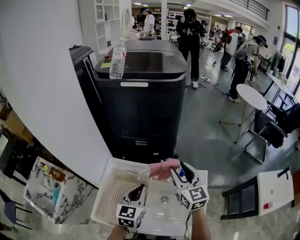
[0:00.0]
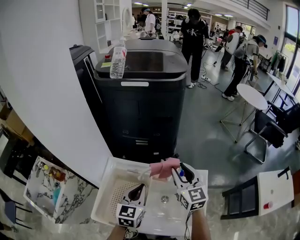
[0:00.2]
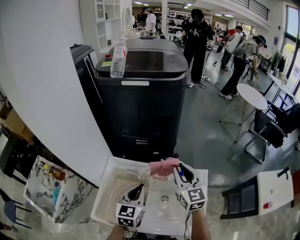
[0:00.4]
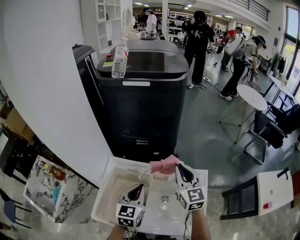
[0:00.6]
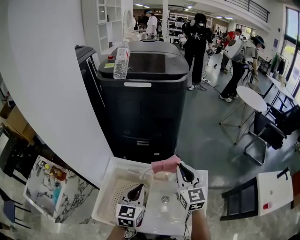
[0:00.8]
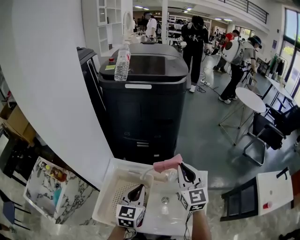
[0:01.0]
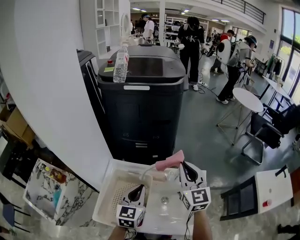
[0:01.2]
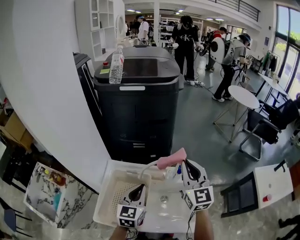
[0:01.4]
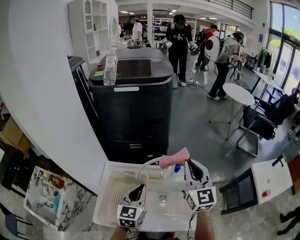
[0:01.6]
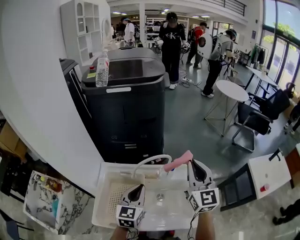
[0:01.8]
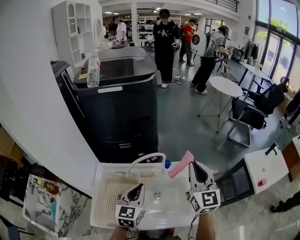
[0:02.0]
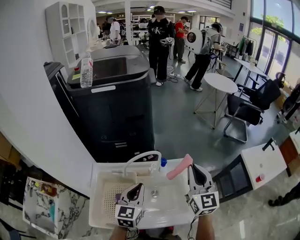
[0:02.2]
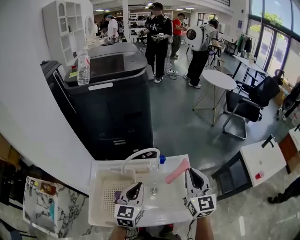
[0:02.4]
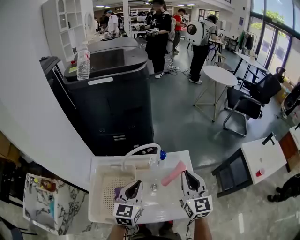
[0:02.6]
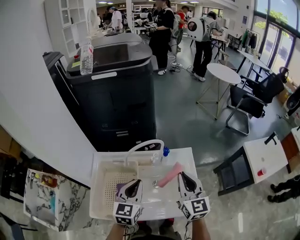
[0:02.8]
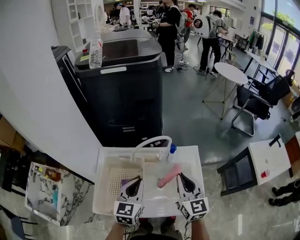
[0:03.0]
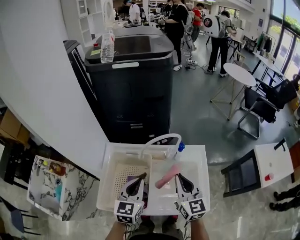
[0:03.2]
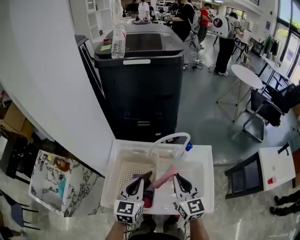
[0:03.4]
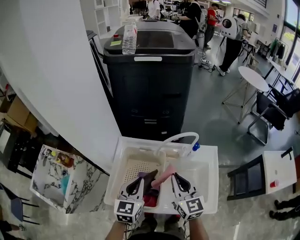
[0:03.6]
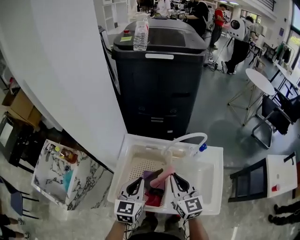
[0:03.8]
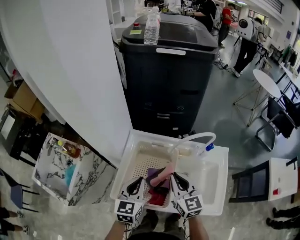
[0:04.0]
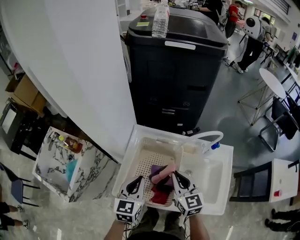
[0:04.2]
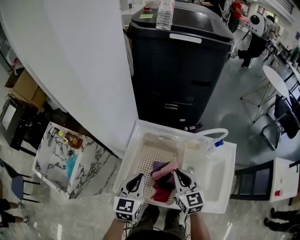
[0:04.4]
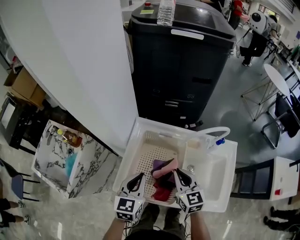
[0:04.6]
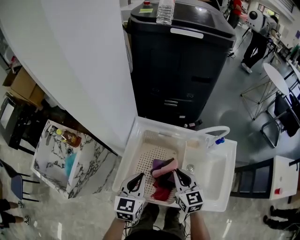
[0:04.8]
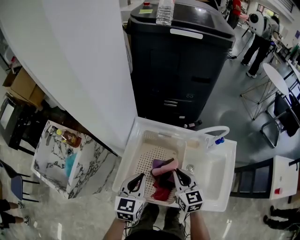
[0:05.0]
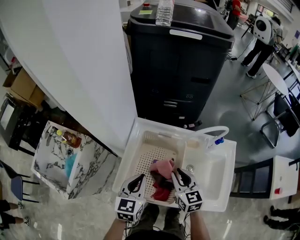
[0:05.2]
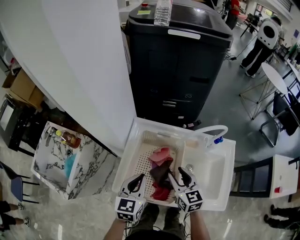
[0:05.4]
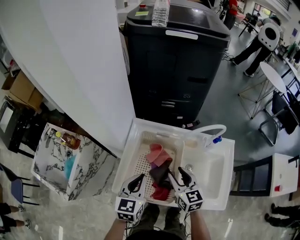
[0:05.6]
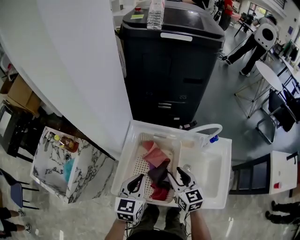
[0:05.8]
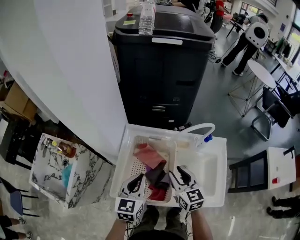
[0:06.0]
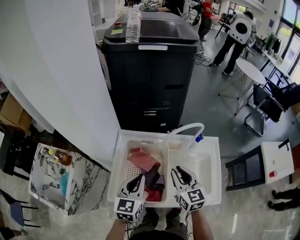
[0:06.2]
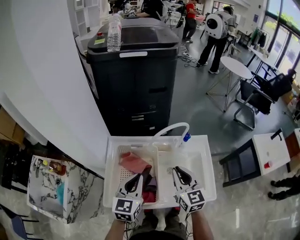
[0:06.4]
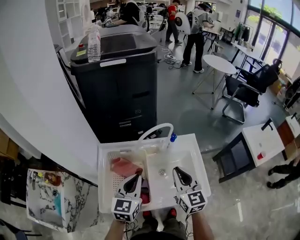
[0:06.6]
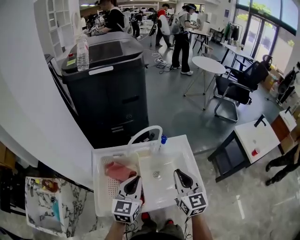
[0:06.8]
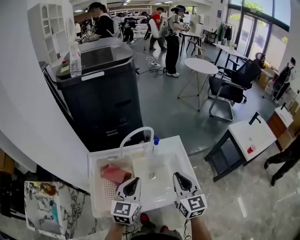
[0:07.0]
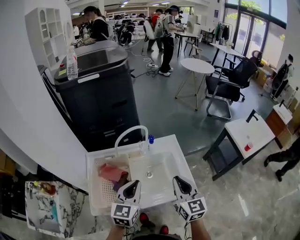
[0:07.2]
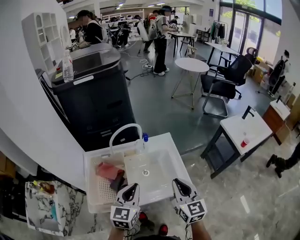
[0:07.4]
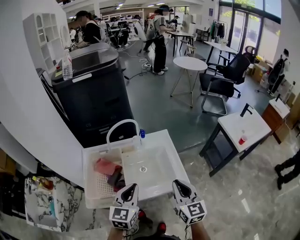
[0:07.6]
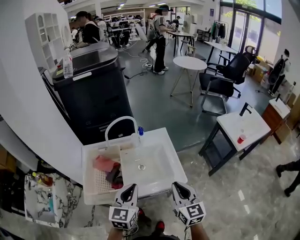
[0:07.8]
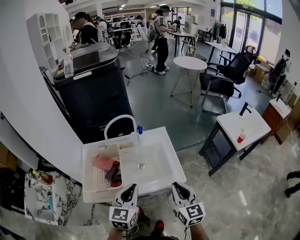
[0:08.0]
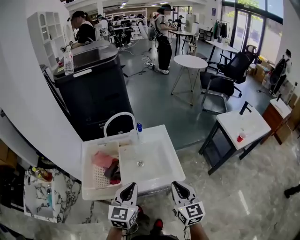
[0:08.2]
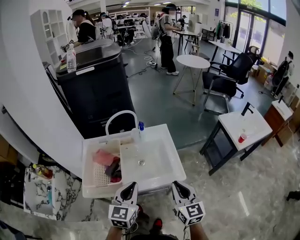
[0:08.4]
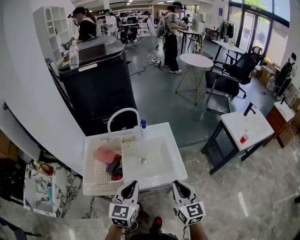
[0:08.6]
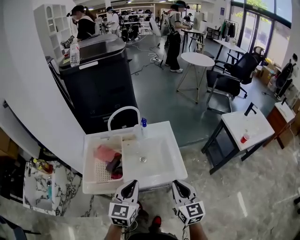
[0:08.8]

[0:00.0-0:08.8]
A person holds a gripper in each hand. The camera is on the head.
0:00.0 to 0:01.4: The right gripper moves upward, roughly 5 cm, and closes its fingers.
0:01.4 to 0:03.0: The left gripper changes place by roughly 5 cm. The right gripper shifts about 15 cm backward and downward.
0:03.0 to 0:04.4: The right gripper travels to the left and downward by roughly 25 cm, and turns by roughly 20 degrees; the left gripper is displaced to the left by about 20 cm.
0:04.4 to 0:05.8: The right gripper opens its fingers.
0:05.8 to 0:07.4: The left gripper moves about 25 cm, and changes its angle by approximately 30 degrees, while the right gripper ends up roughly 30 cm from where it was, swivels about 30 degrees, and closes up.
0:07.4 to 0:08.8: The two grippers go approximately 10 cm backward.

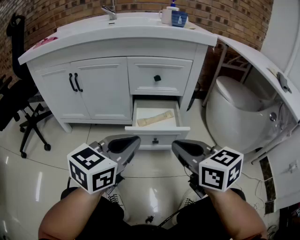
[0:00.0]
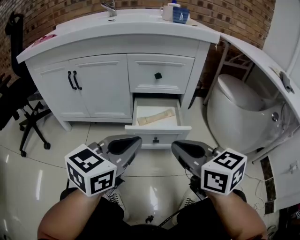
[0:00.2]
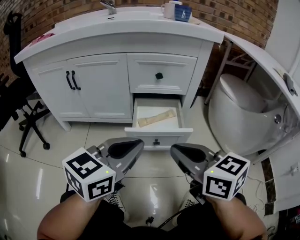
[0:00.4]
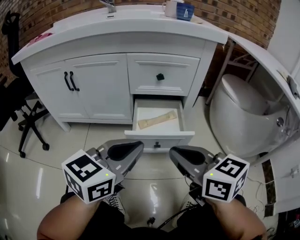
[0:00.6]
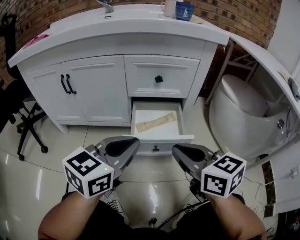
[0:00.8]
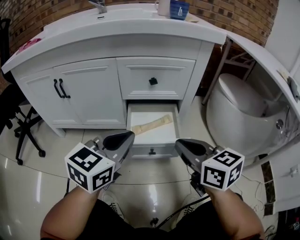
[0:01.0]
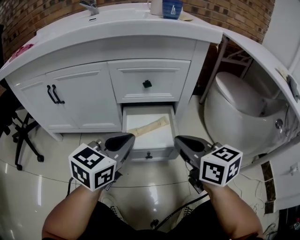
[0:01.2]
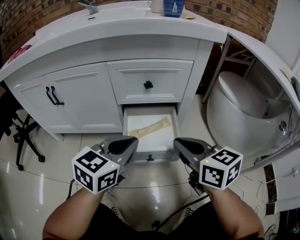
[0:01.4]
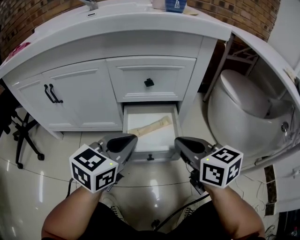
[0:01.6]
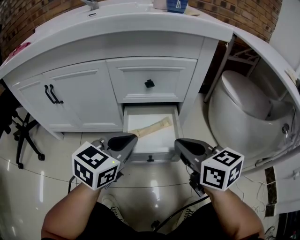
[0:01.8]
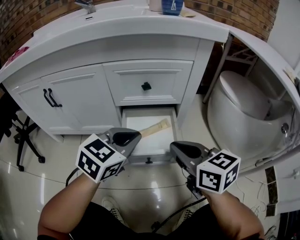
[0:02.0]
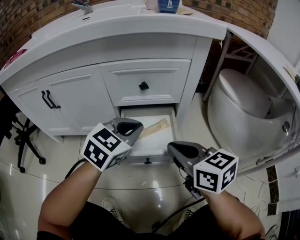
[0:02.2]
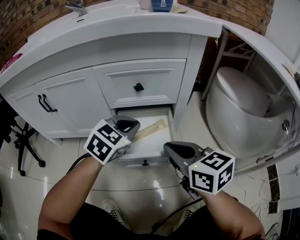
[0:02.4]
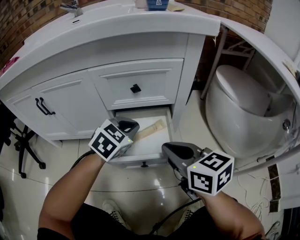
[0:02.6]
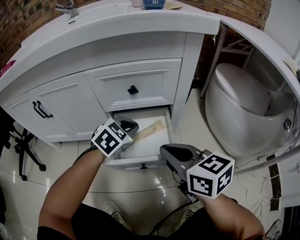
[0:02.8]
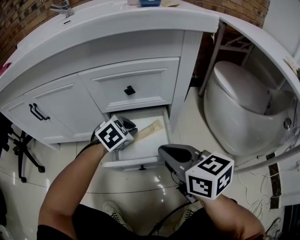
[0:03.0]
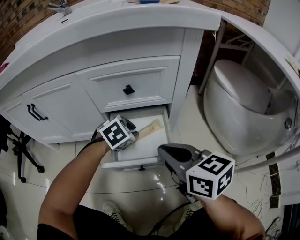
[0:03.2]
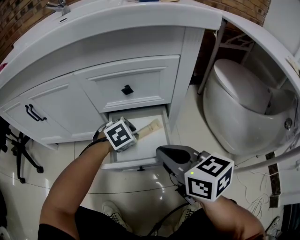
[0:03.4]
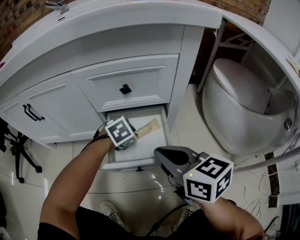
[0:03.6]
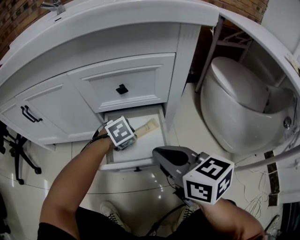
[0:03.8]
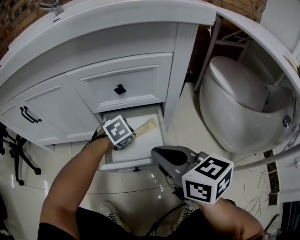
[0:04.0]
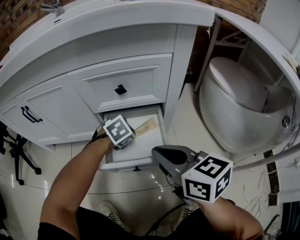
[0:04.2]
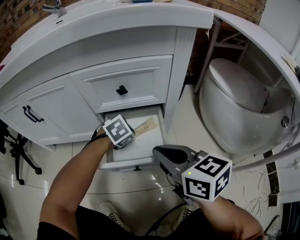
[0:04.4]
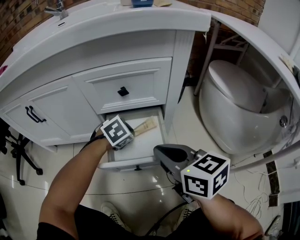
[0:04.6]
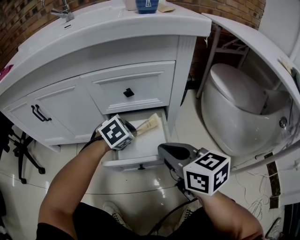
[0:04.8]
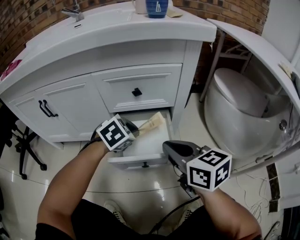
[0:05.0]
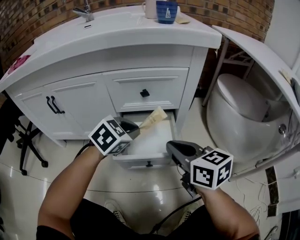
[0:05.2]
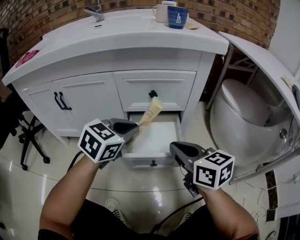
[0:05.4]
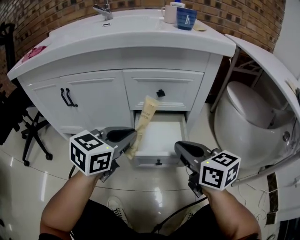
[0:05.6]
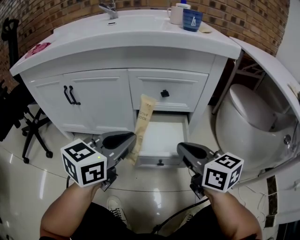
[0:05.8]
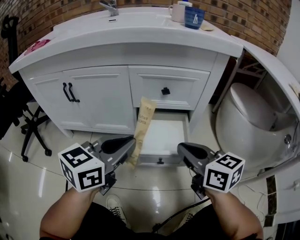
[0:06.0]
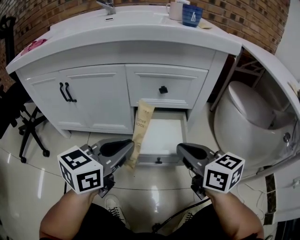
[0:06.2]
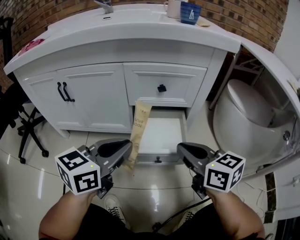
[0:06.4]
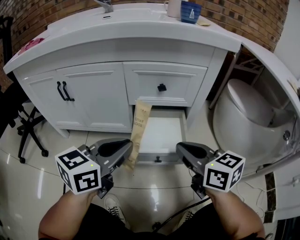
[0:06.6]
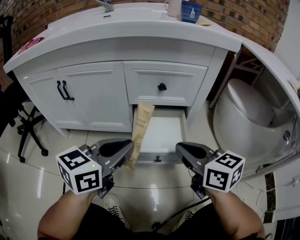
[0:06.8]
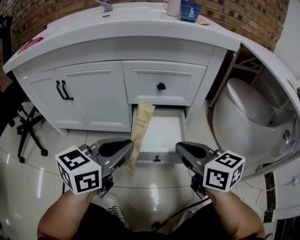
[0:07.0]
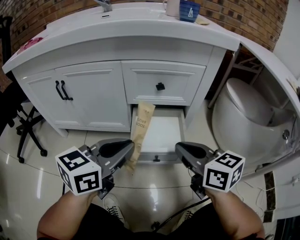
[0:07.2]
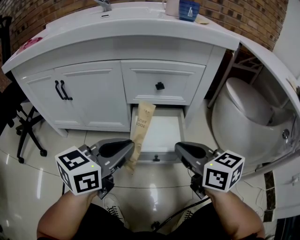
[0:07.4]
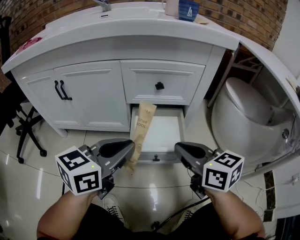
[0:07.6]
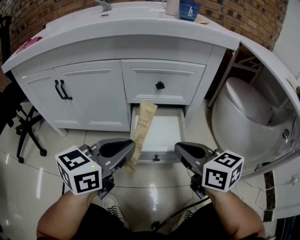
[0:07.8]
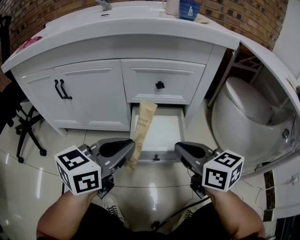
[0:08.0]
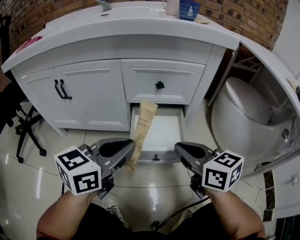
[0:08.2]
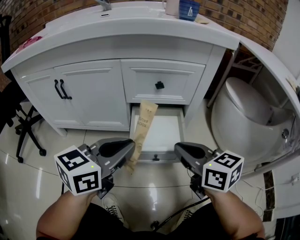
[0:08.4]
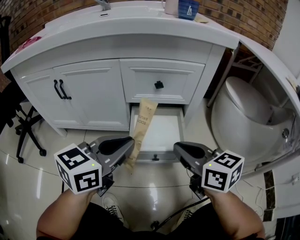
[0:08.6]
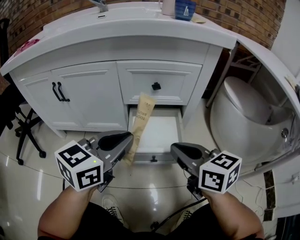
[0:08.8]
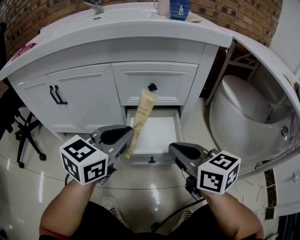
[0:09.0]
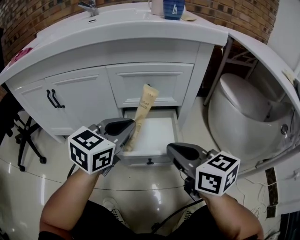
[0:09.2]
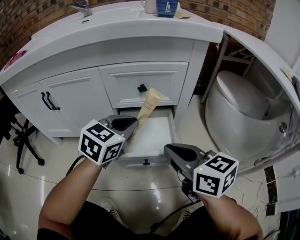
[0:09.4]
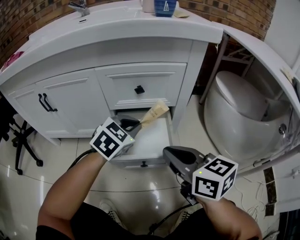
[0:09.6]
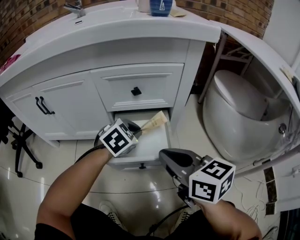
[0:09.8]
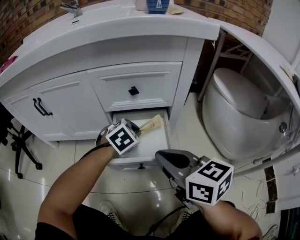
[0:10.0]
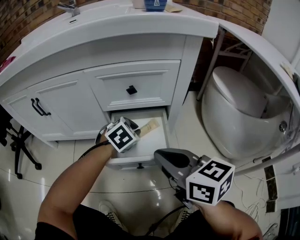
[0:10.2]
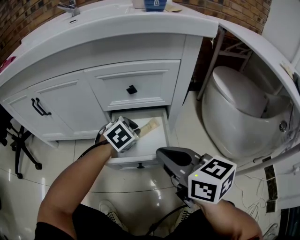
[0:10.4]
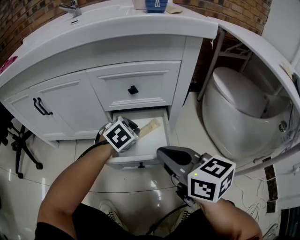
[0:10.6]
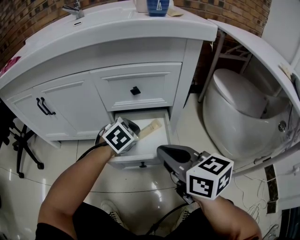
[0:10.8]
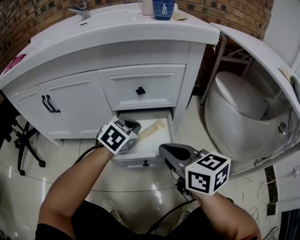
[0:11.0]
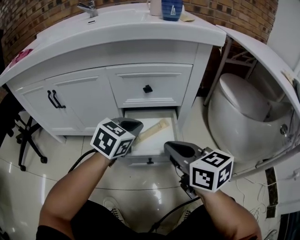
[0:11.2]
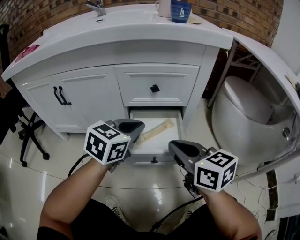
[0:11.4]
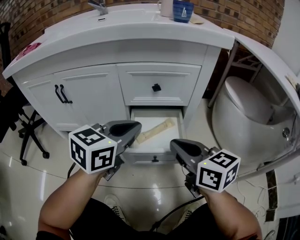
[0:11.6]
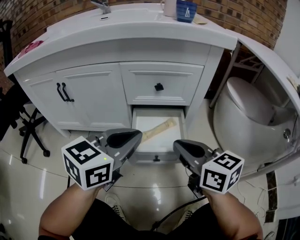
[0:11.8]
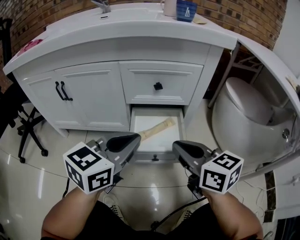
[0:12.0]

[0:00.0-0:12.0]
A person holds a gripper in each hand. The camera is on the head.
0:00.0 to 0:01.6: The grippers both shift forward by approximately 15 cm.
0:01.6 to 0:03.0: The left gripper shifts roughly 20 cm downward and forward, and points its fingers approximately 30 degrees further downward.
0:04.4 to 0:06.0: The left gripper is displaced upward, backward and to the left by about 30 cm, and angles its fingers upward, by some 50 degrees.
0:06.0 to 0:07.6: The grippers stay close to where they were, moving slightly.
0:07.6 to 0:09.0: The left gripper moves roughly 5 cm.
0:09.0 to 0:10.4: The left gripper shifts approximately 25 cm downward, forward and to the right, and tips its fingers downward by about 40 degrees.
0:10.4 to 0:12.0: The left gripper heads upward and backward, covering about 25 cm, and points its fingers about 40 degrees further upward.

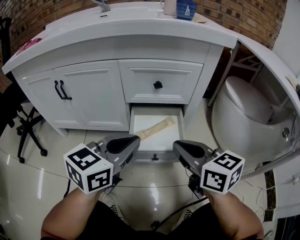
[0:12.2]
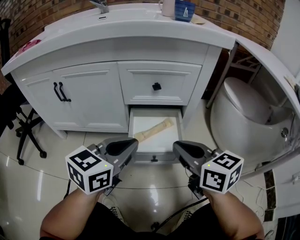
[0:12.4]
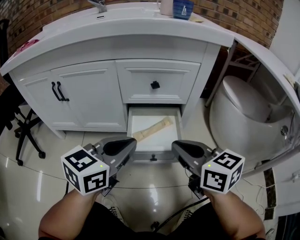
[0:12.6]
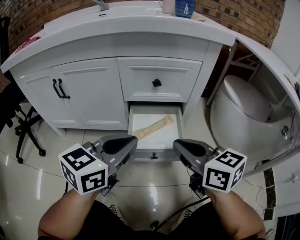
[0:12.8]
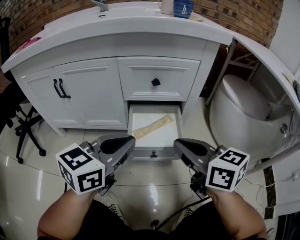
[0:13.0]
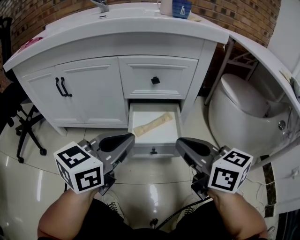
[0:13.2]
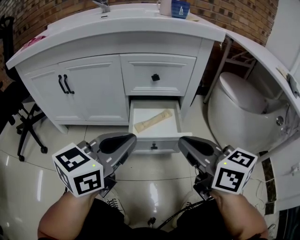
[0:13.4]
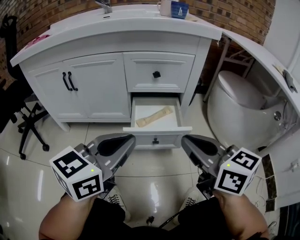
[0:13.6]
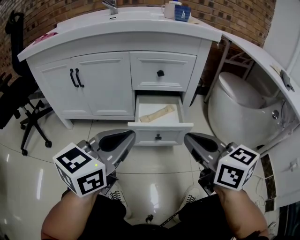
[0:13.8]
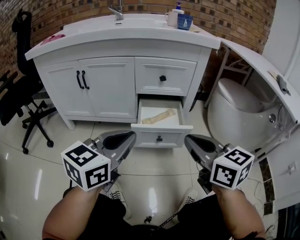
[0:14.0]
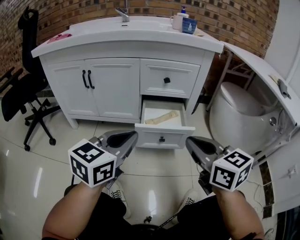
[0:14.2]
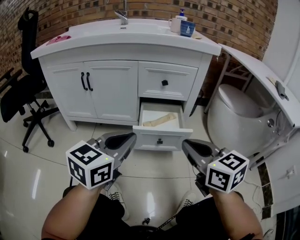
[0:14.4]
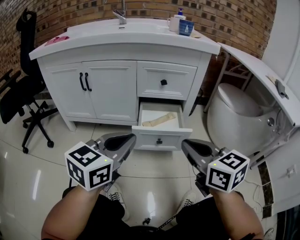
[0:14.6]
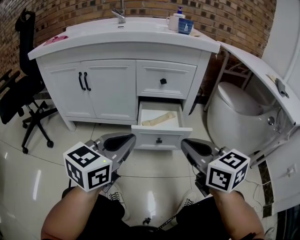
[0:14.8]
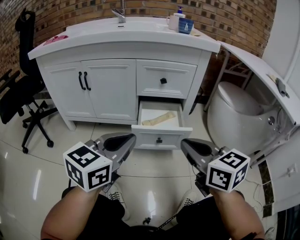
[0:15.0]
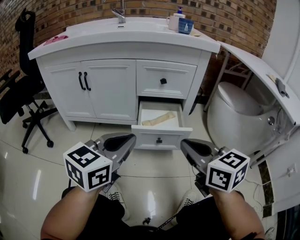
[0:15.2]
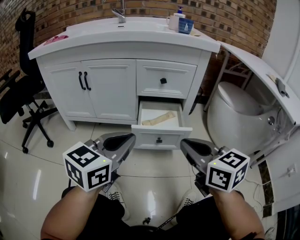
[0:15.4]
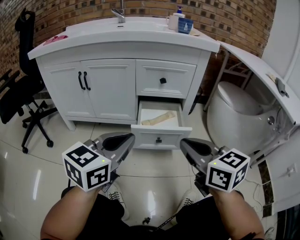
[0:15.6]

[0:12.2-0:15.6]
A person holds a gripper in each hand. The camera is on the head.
0:12.2 to 0:13.8: The left gripper is displaced backward by approximately 10 cm. Meanwhile the right gripper goes roughly 10 cm backward and upward.
0:13.8 to 0:15.6: The grippers make only small movements.
